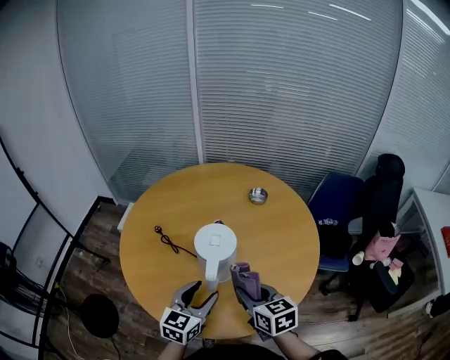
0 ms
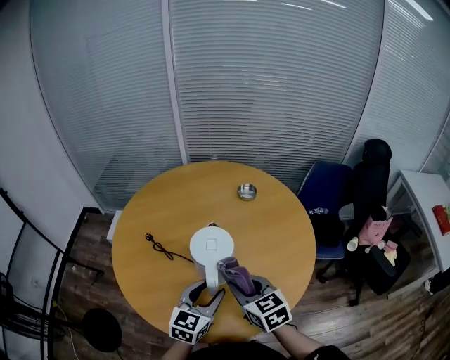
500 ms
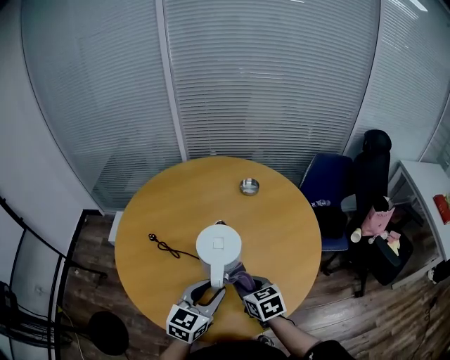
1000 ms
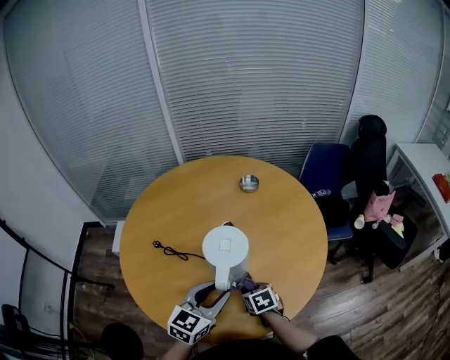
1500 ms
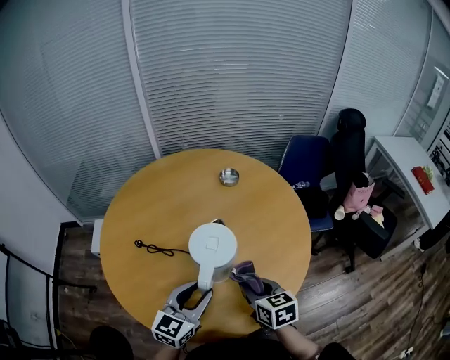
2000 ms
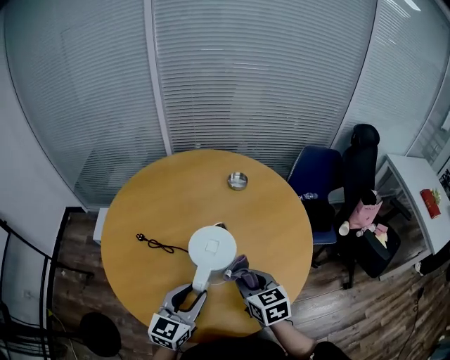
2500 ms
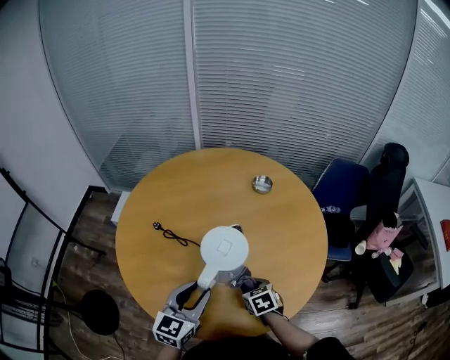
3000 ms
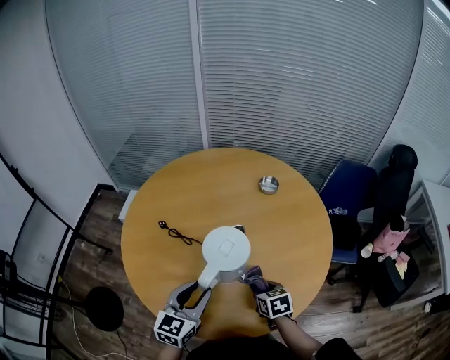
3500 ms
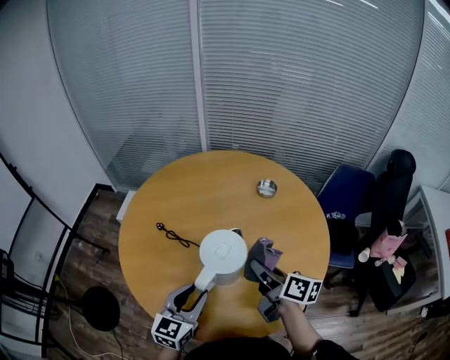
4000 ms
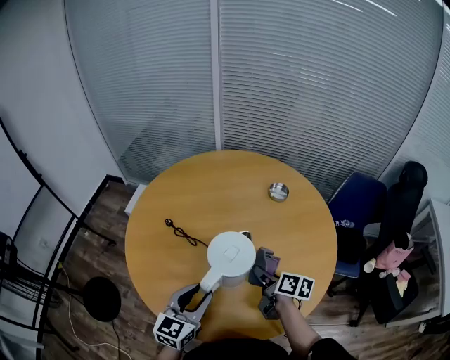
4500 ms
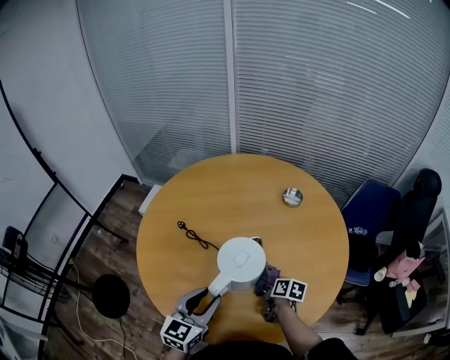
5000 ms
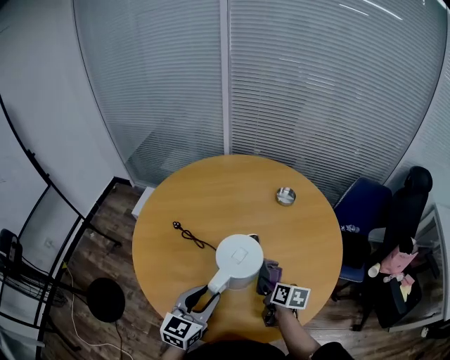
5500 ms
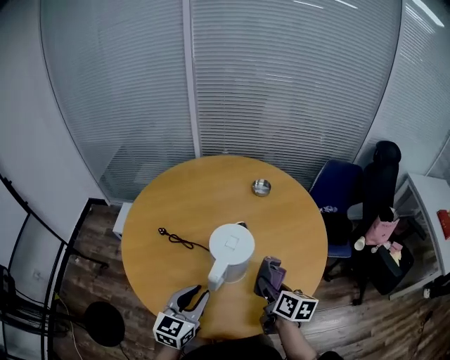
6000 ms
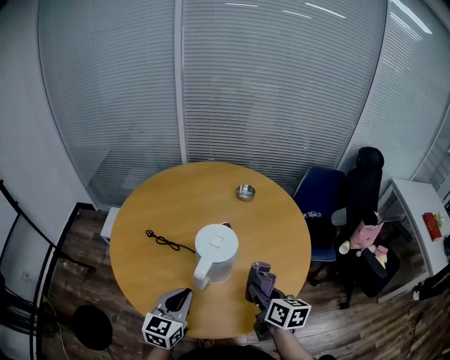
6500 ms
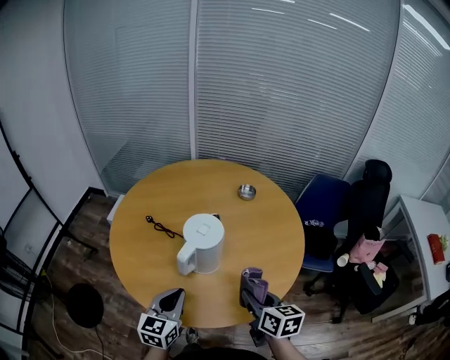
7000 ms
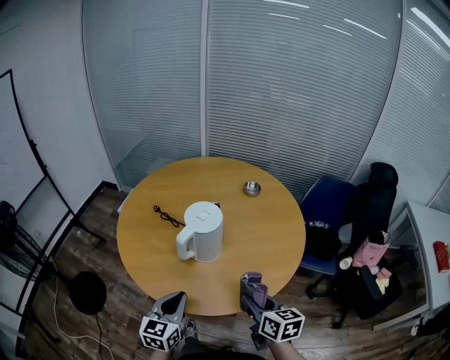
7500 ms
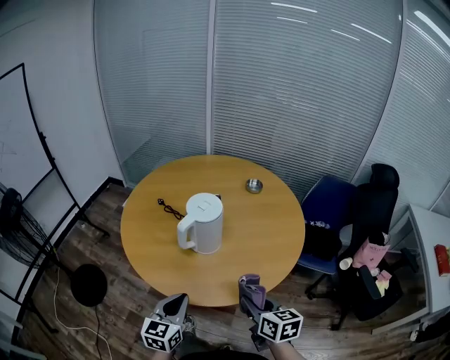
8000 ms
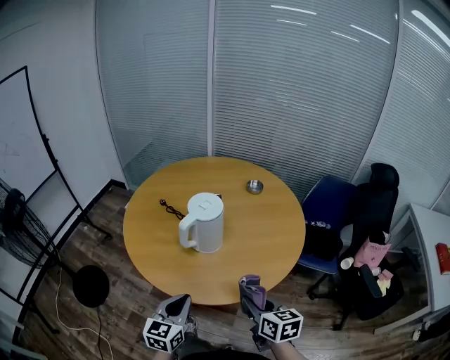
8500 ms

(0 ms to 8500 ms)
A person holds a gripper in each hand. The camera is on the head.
0 ms - 2000 ms: The left gripper changes its angle by some 20 degrees. The right gripper moves roughly 20 cm downward and comes back, and changes its angle by some 20 degrees.
2000 ms - 4000 ms: The left gripper changes its angle by about 30 degrees. The right gripper shifts about 10 cm forward, travels downward and back again, roughly 10 cm each way, and turns by some 40 degrees.
4000 ms - 6500 ms: The right gripper is displaced backward by approximately 10 cm, moves roughly 20 cm downward and comes back, and rotates some 30 degrees, while the left gripper closes its fingers.
6500 ms - 8500 ms: The left gripper is displaced backward and to the right by roughly 20 cm, while the right gripper heads backward, covering about 15 cm, and rotates approximately 20 degrees.
